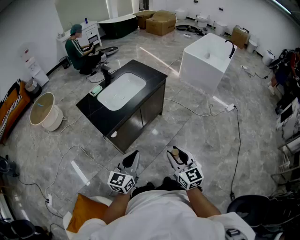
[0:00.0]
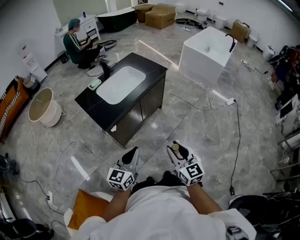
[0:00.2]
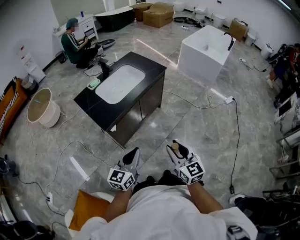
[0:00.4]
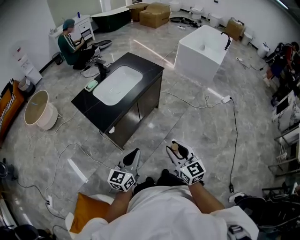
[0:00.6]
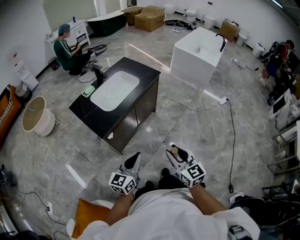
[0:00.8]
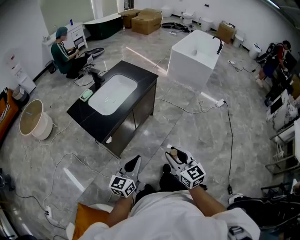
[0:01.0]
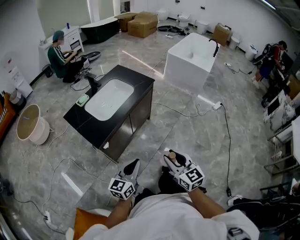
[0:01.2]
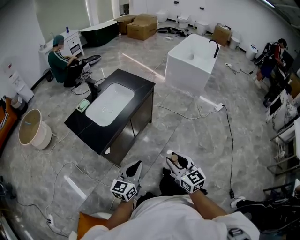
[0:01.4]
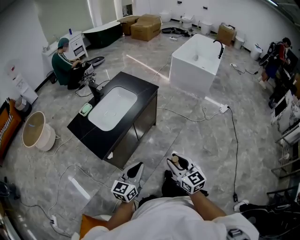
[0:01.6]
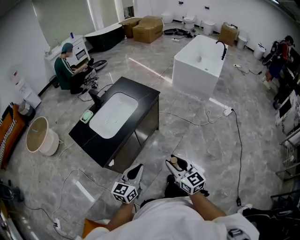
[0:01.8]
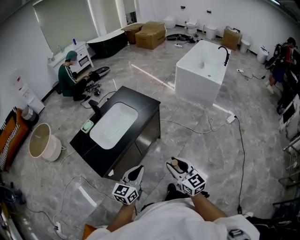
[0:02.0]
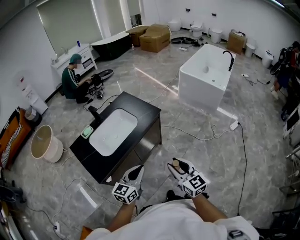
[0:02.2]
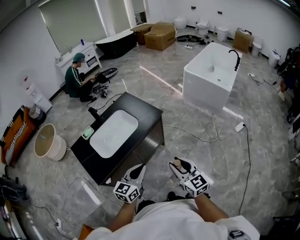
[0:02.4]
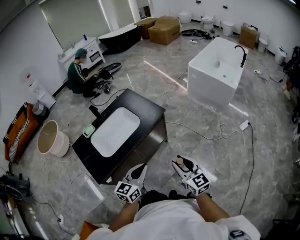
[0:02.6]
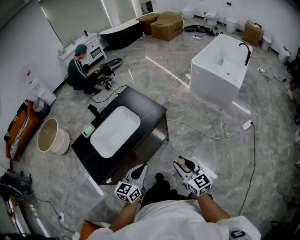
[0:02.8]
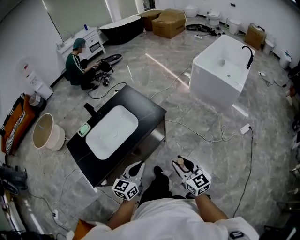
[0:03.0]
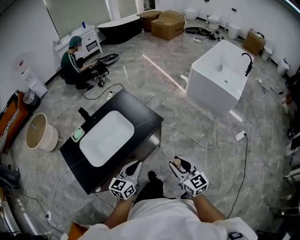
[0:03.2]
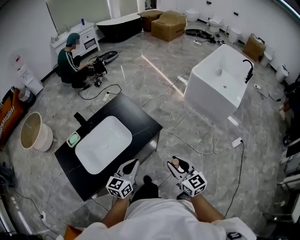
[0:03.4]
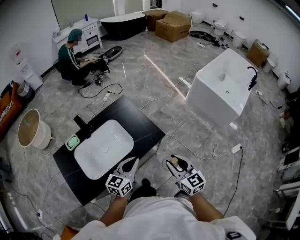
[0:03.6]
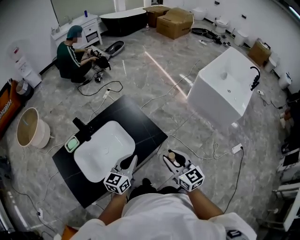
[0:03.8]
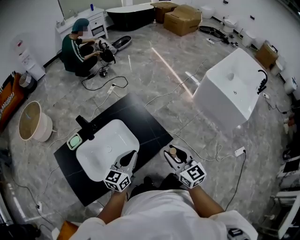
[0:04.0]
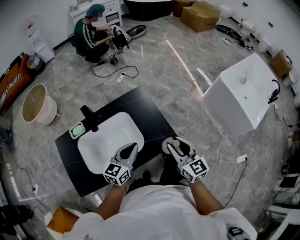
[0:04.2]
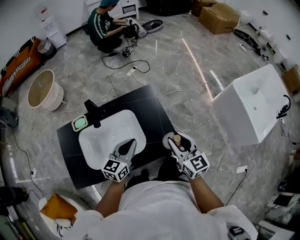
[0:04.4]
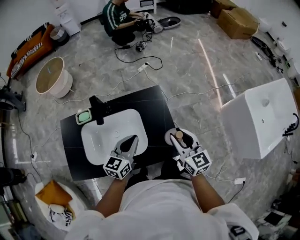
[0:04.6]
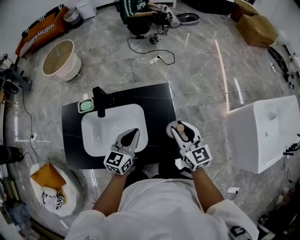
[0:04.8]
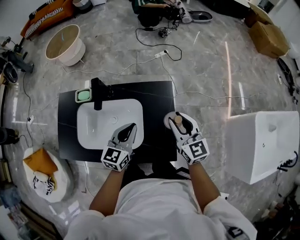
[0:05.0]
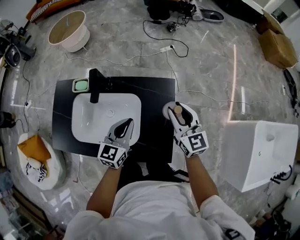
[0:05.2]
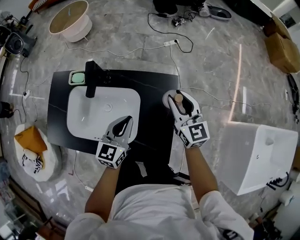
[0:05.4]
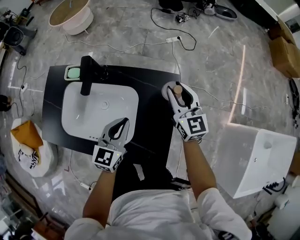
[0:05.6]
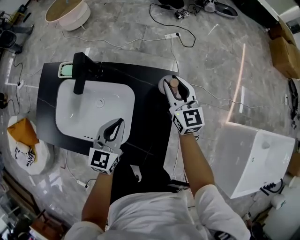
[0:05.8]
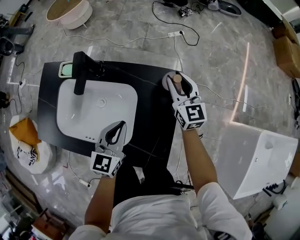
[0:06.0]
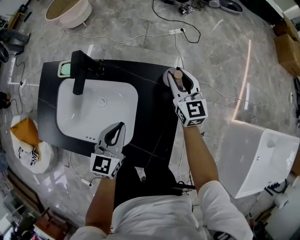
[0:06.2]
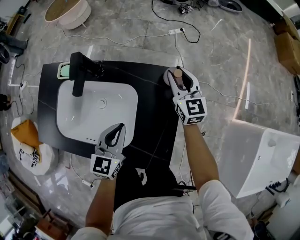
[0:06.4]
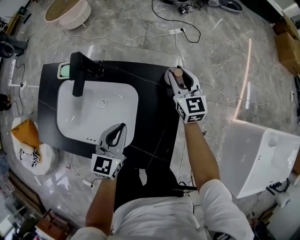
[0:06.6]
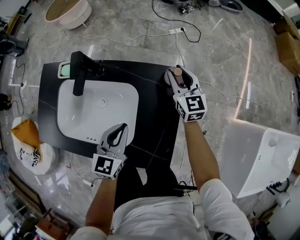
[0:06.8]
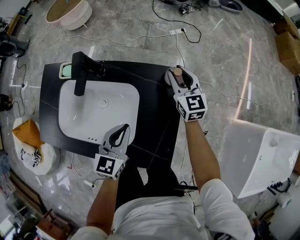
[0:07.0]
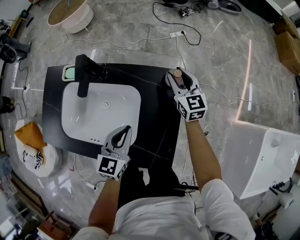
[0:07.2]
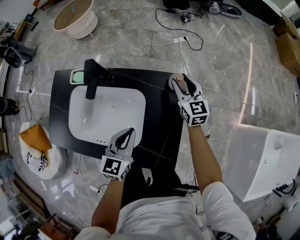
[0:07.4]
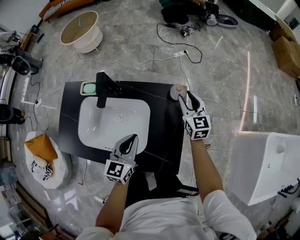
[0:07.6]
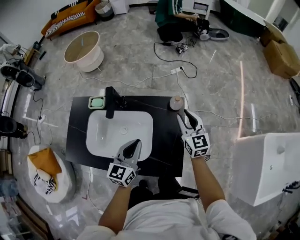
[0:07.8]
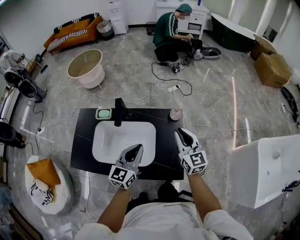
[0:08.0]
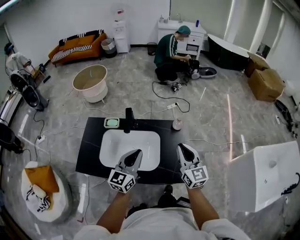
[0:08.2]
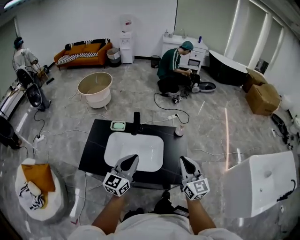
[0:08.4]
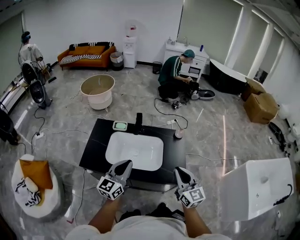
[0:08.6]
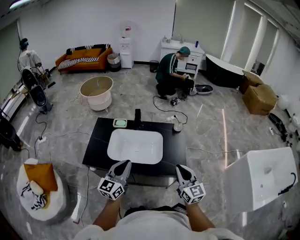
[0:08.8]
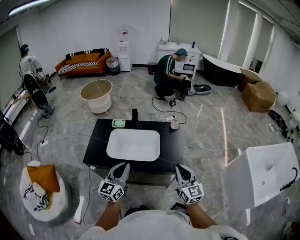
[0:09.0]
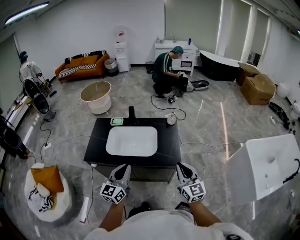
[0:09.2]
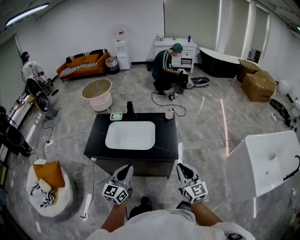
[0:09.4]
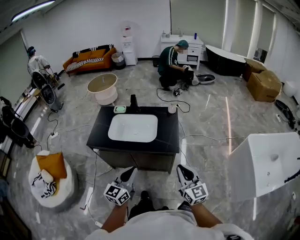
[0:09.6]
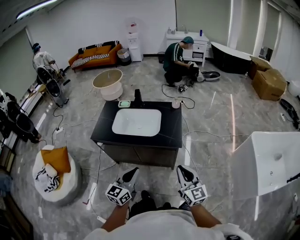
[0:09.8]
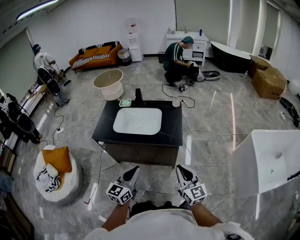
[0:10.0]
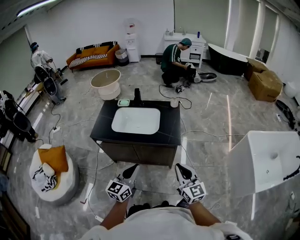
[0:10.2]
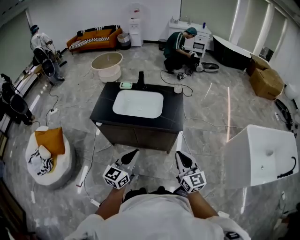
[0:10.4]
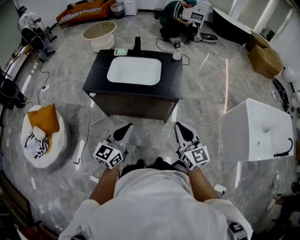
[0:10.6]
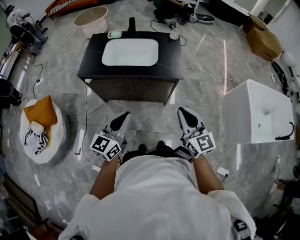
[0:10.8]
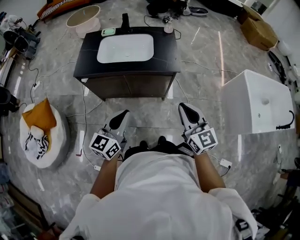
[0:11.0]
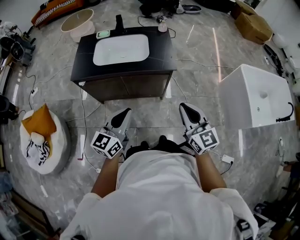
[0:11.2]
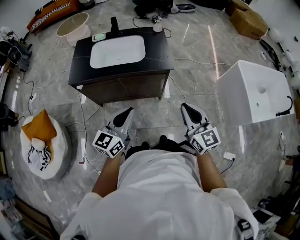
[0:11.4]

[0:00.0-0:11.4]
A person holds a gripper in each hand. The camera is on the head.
0:00.0 to 0:01.4: The grippers both shift forward by about 5 cm.
0:01.4 to 0:02.8: The grippers both shift forward and to the right by approximately 35 cm.
0:02.8 to 0:04.2: The two grippers go roughly 40 cm forward.
0:04.2 to 0:05.6: The right gripper moves approximately 40 cm, and changes its angle by about 30 degrees. Meanwhile the left gripper changes place by some 20 cm, and swivels some 40 degrees.
0:05.6 to 0:07.2: The right gripper goes roughly 10 cm downward and forward.
0:07.2 to 0:08.6: The right gripper moves backward and upward, about 50 cm, and closes its fingers, while the left gripper goes approximately 40 cm upward, backward and to the left, and turns by some 30 degrees.
0:08.6 to 0:10.0: The left gripper goes roughly 35 cm backward and to the right; the right gripper is displaced backward by roughly 30 cm.
0:10.0 to 0:11.4: The left gripper changes place by approximately 5 cm, while the right gripper goes approximately 5 cm backward.

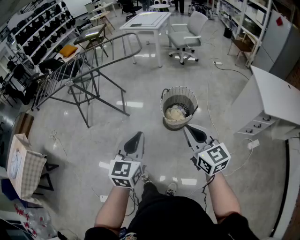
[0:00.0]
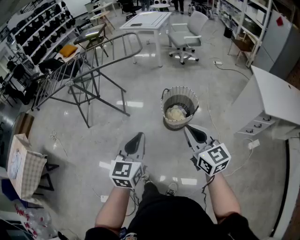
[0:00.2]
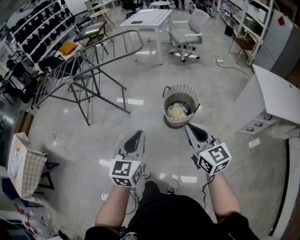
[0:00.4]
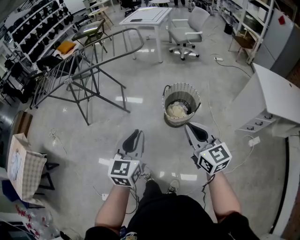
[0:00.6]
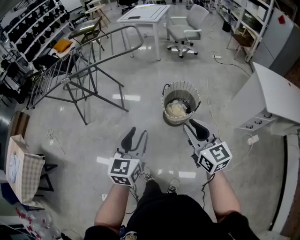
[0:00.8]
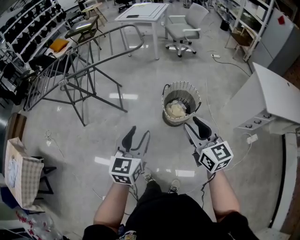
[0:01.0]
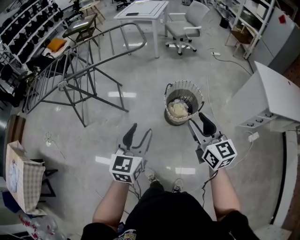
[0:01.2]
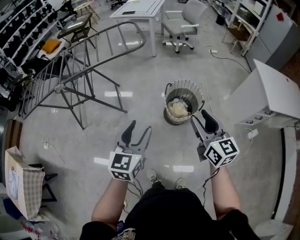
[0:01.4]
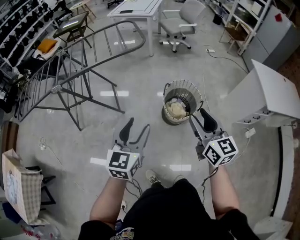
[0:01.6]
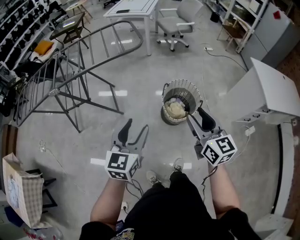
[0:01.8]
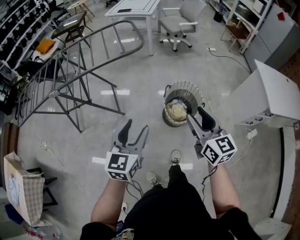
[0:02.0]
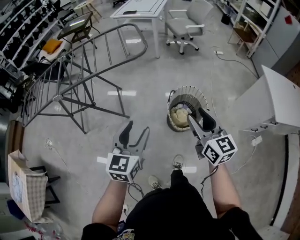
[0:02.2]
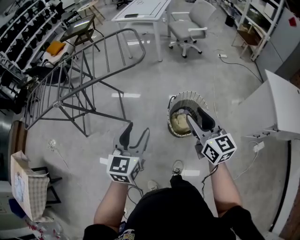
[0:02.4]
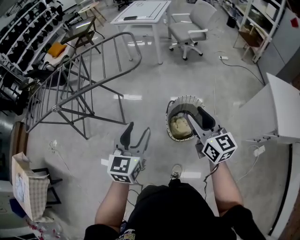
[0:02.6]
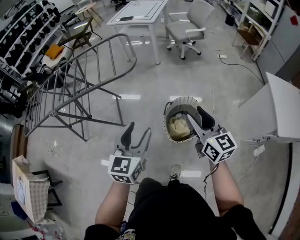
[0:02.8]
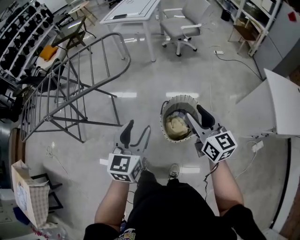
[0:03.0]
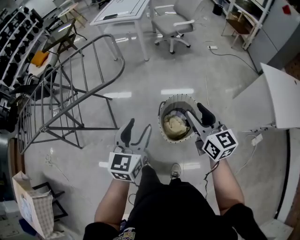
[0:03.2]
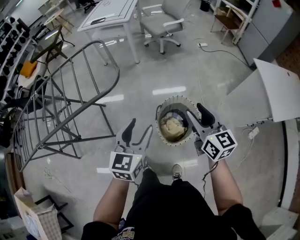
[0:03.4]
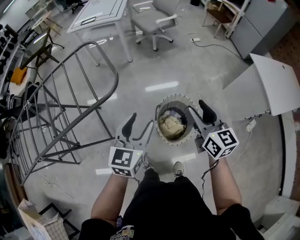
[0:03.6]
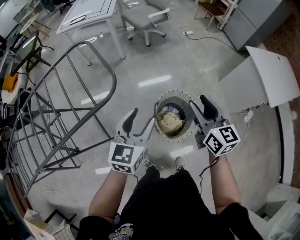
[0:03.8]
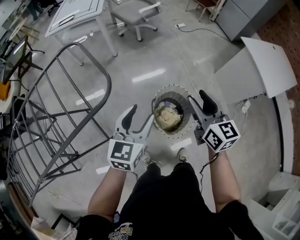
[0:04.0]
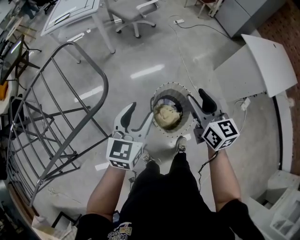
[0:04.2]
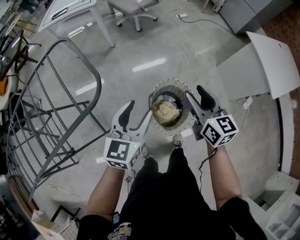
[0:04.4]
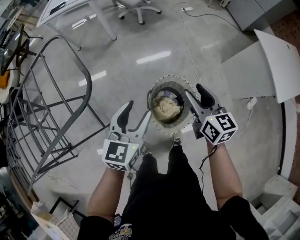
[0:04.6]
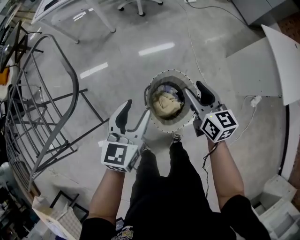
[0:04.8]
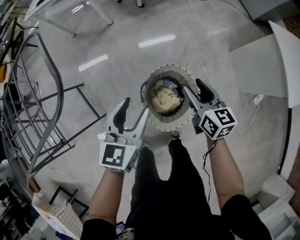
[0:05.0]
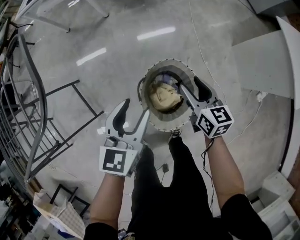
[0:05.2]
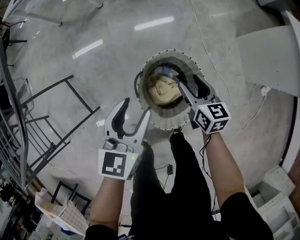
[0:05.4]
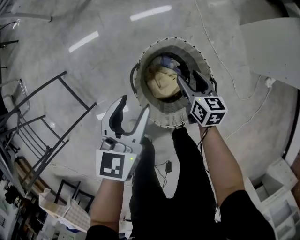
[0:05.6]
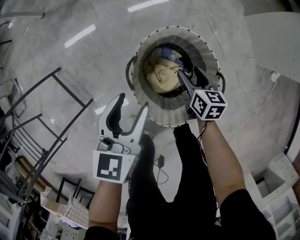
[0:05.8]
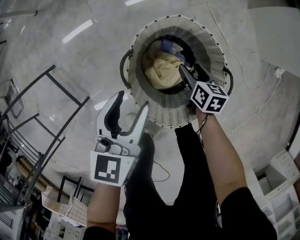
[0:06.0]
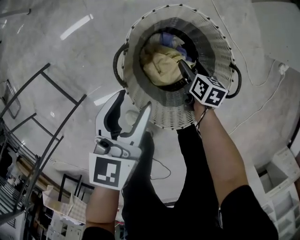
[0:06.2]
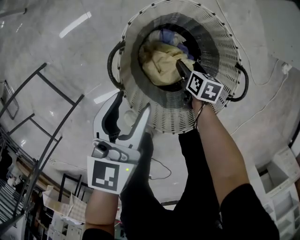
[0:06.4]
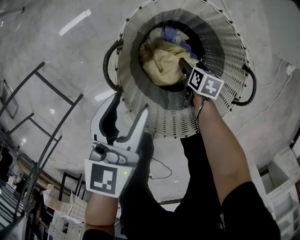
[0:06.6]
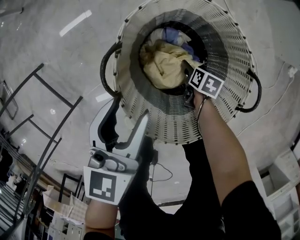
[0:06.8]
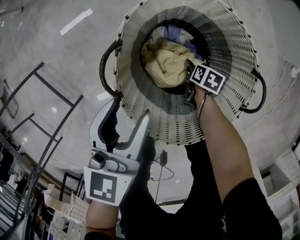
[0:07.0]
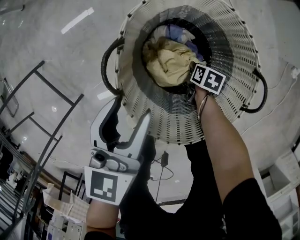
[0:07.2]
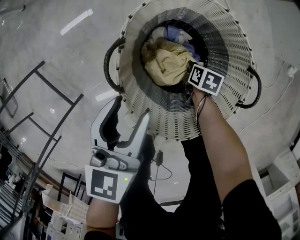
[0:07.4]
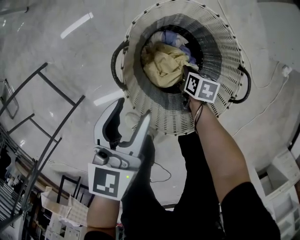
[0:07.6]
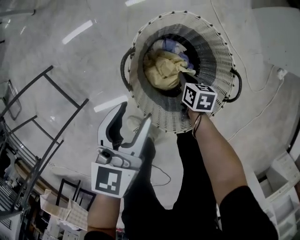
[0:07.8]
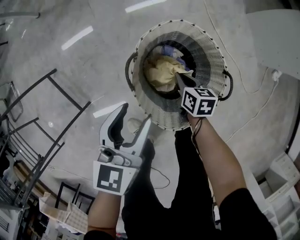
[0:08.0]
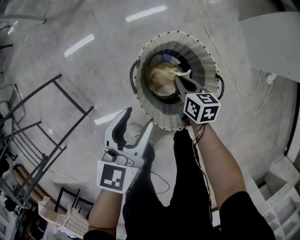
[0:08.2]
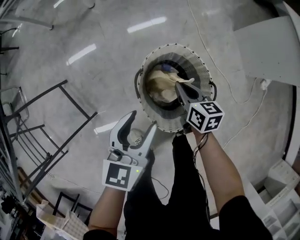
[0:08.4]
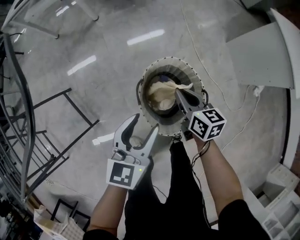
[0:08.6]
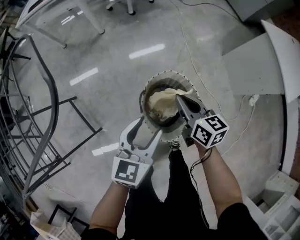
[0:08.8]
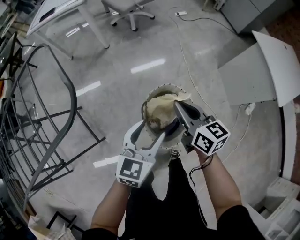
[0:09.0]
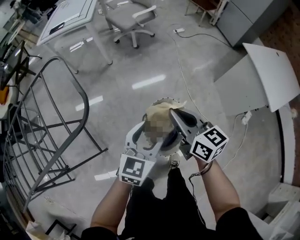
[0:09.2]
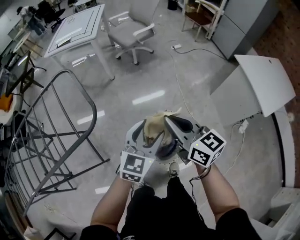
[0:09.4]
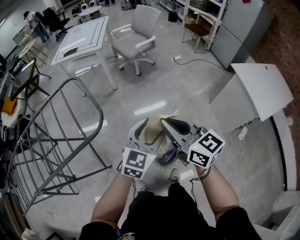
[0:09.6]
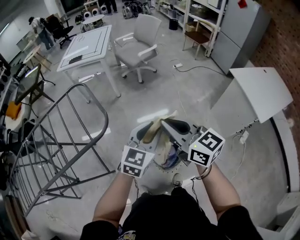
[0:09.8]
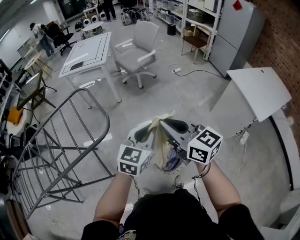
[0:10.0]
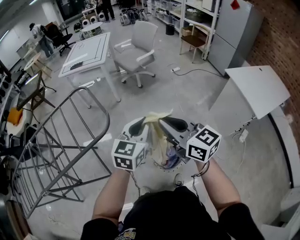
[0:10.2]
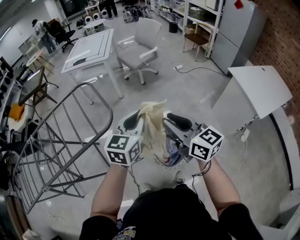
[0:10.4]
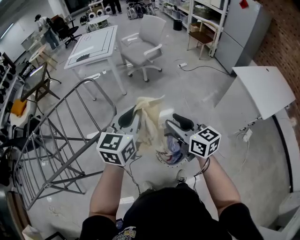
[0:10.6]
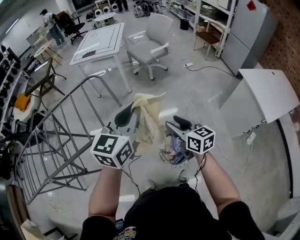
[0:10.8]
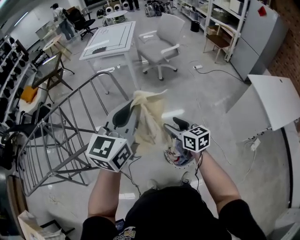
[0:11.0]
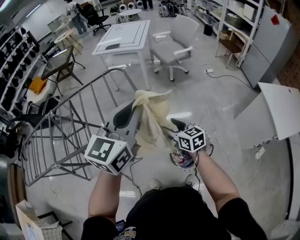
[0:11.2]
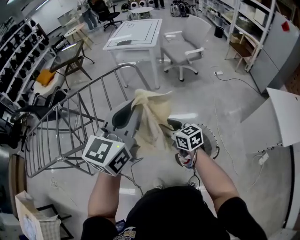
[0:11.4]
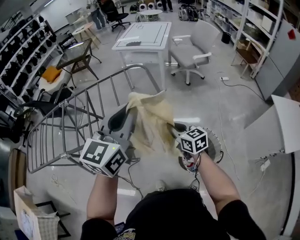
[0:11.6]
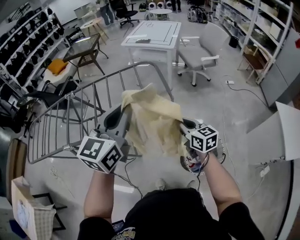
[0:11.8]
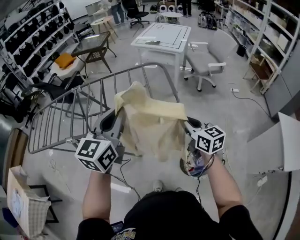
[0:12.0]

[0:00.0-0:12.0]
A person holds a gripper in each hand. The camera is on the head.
0:00.0 to 0:01.6: Both grippers travel together forward and to the left, about 20 cm. The right gripper opens up; the left gripper opens its fingers.
0:01.6 to 0:03.0: The two grippers go about 25 cm forward and to the right.
0:03.0 to 0:04.4: The right gripper changes place by approximately 20 cm, and rotates some 30 degrees; the left gripper shifts by approximately 25 cm, and turns by about 30 degrees.
0:04.4 to 0:06.0: The left gripper moves downward, approximately 40 cm; the right gripper is displaced downward by some 60 cm, and tilts its fingers approximately 30 degrees downward.
0:06.0 to 0:07.6: The right gripper heads downward, covering approximately 15 cm, and closes; the left gripper moves downward, some 5 cm.
0:07.6 to 0:09.0: The left gripper moves upward, some 35 cm; the right gripper heads upward, covering roughly 60 cm, and points its fingers approximately 50 degrees further upward.
0:09.0 to 0:10.4: The left gripper travels upward by some 25 cm, and closes its fingers; the right gripper moves upward and backward, roughly 30 cm, and rotates approximately 20 degrees.
0:10.4 to 0:12.0: The left gripper heads to the left, covering some 35 cm, and turns by approximately 30 degrees. Meanwhile the right gripper shifts some 20 cm to the left, swivels some 20 degrees, and opens and closes again.
